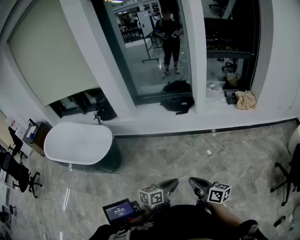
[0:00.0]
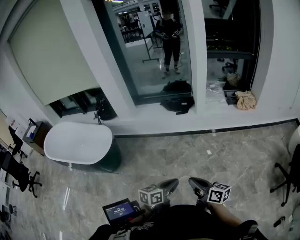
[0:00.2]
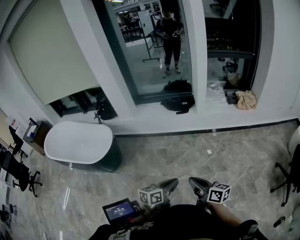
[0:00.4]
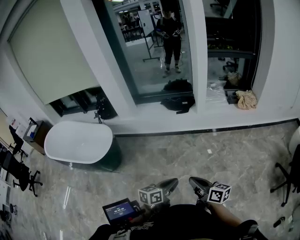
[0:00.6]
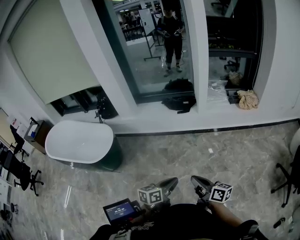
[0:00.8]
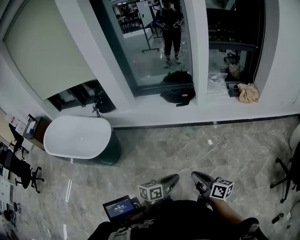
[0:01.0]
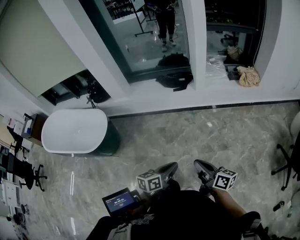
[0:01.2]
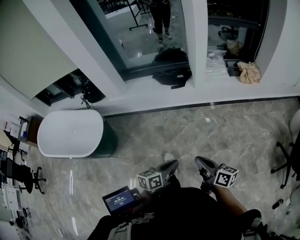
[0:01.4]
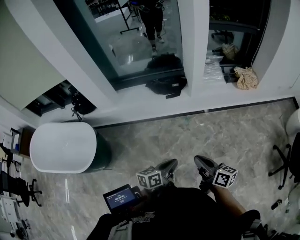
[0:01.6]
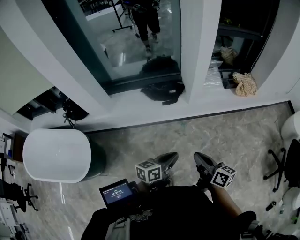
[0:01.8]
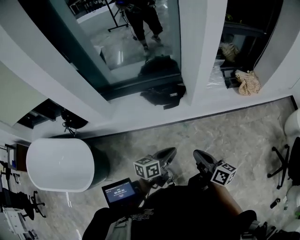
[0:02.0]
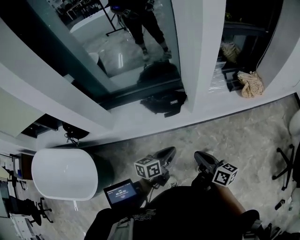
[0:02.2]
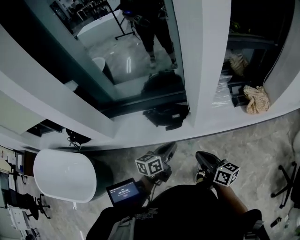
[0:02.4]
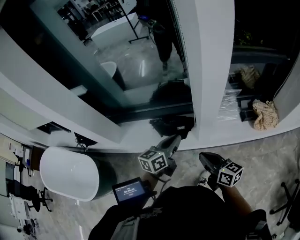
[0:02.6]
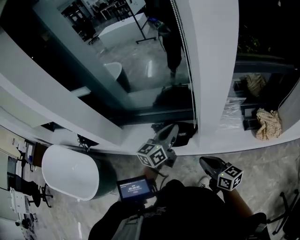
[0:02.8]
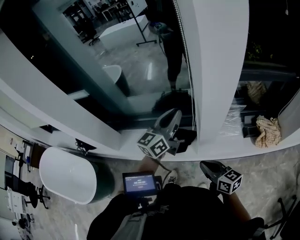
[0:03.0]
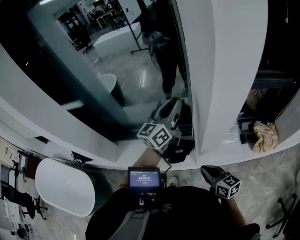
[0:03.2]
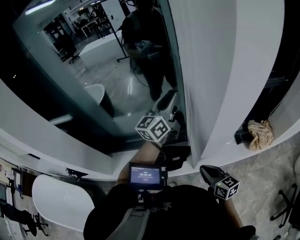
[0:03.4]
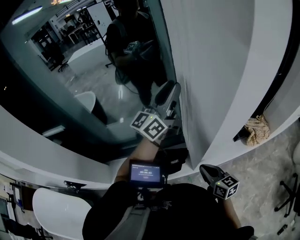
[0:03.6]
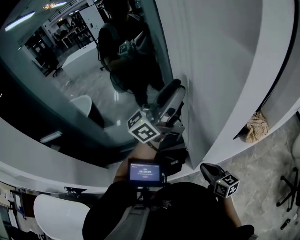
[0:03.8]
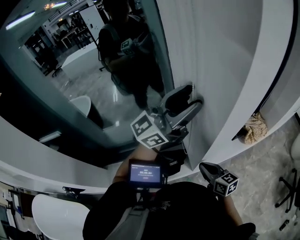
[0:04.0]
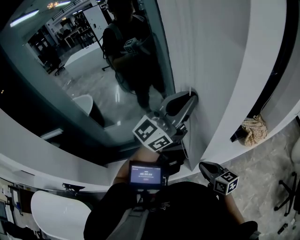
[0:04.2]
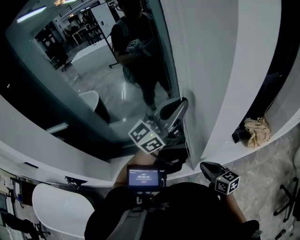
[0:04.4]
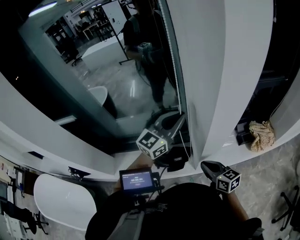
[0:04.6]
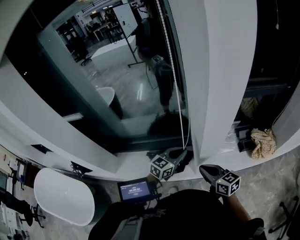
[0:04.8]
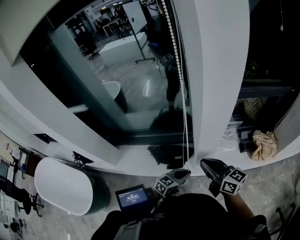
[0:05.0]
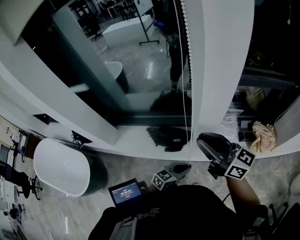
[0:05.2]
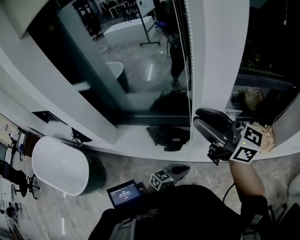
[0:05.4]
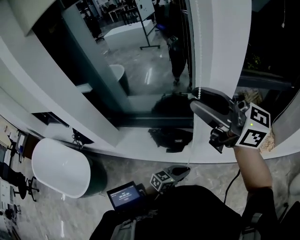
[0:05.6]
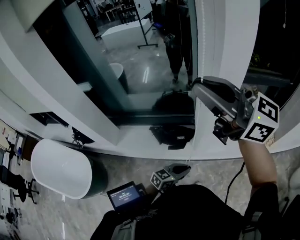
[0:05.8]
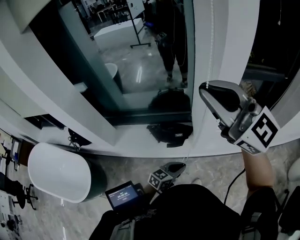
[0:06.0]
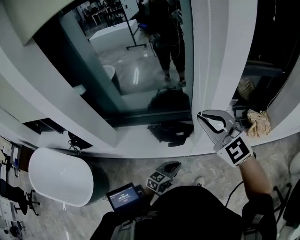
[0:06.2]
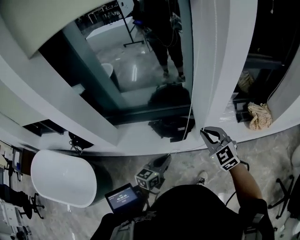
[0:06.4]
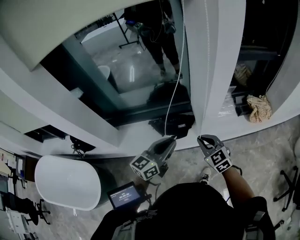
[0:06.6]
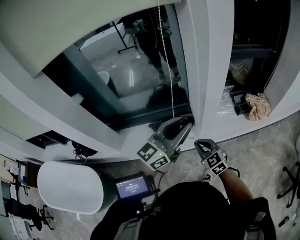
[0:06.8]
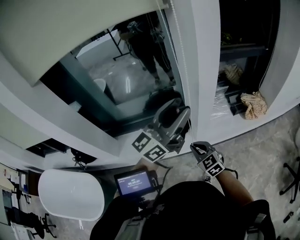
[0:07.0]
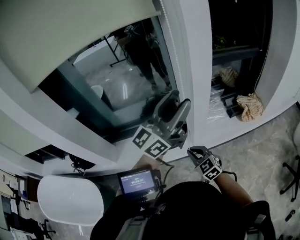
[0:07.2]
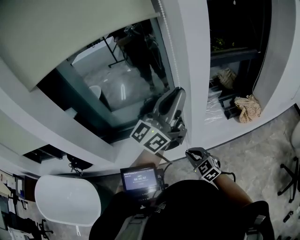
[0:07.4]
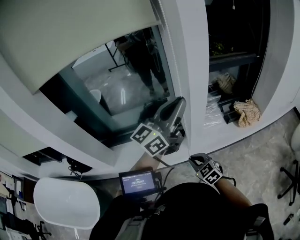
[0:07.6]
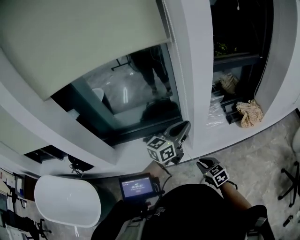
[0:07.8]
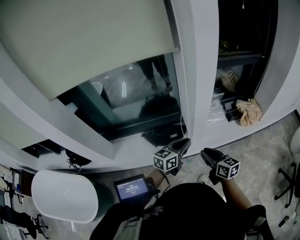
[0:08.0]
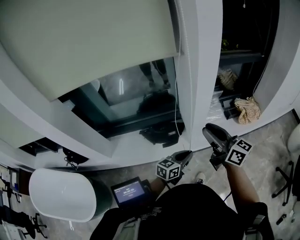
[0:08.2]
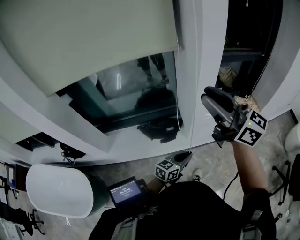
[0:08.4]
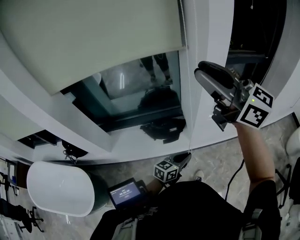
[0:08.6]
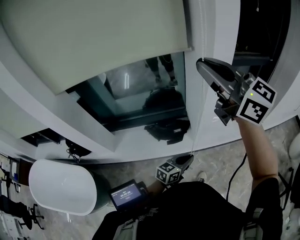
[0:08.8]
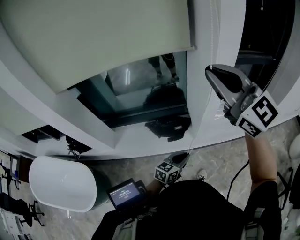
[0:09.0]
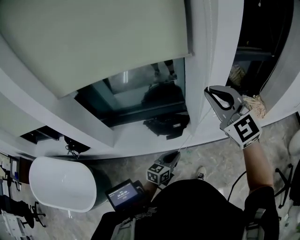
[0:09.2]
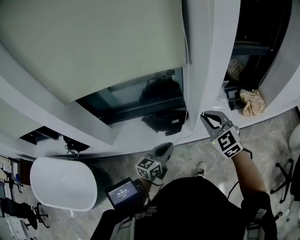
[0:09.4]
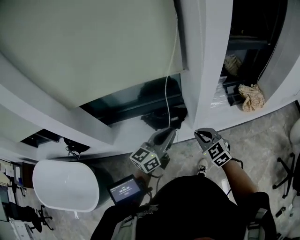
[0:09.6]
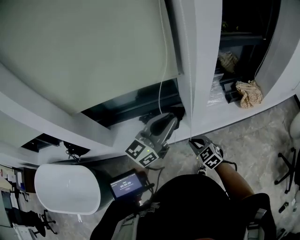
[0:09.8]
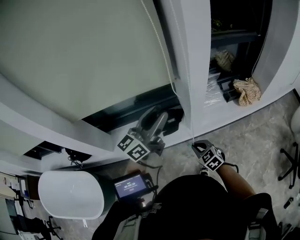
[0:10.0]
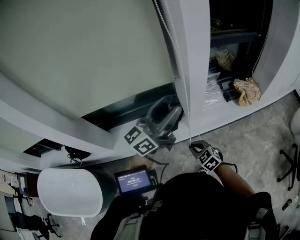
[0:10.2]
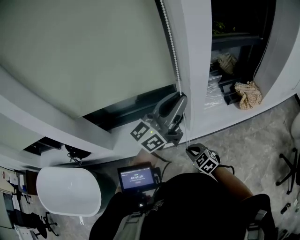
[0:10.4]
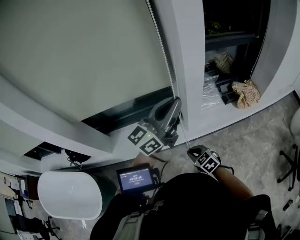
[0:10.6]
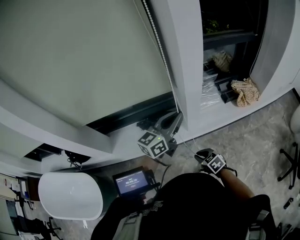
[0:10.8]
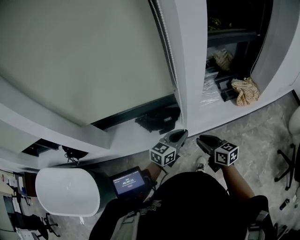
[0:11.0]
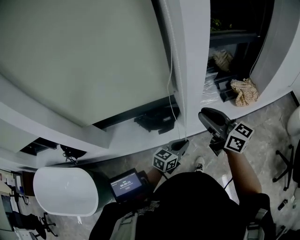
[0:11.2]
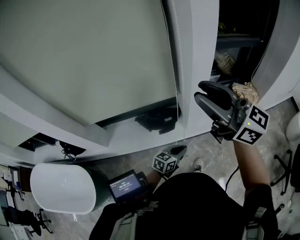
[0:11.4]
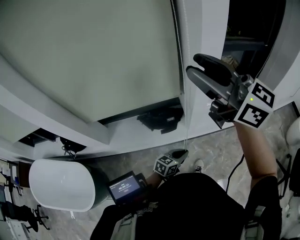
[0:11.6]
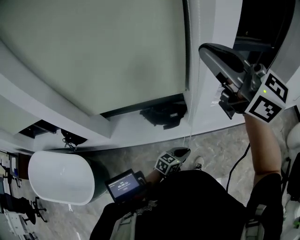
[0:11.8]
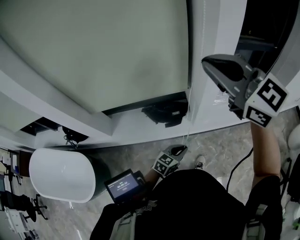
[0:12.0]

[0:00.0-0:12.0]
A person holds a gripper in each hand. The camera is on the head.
0:00.0 to 0:01.6: Both grippers travel together forward, about 20 cm.
0:01.6 to 0:03.0: Both grippers are carried forward, some 50 cm. The right gripper swivels roughly 20 degrees. The left gripper turns by some 40 degrees.
0:03.0 to 0:04.4: The right gripper changes place by some 10 cm, while the left gripper travels upward by approximately 15 cm, rotates roughly 40 degrees, and opens, then closes once more.
0:04.4 to 0:06.0: The right gripper shifts approximately 40 cm upward, rotates roughly 60 degrees, and opens, then closes once more, while the left gripper goes roughly 50 cm downward and backward, and points its fingers approximately 50 degrees further downward.
0:06.0 to 0:07.6: The right gripper goes roughly 40 cm downward, and tilts its fingers about 50 degrees downward, while the left gripper moves upward, about 40 cm, tips its fingers upward by about 40 degrees, and opens, then closes again.
0:07.6 to 0:09.0: The right gripper moves upward, approximately 40 cm, tilts its fingers some 40 degrees upward, and opens and closes again. The left gripper is displaced downward by roughly 35 cm, and angles its fingers downward, by roughly 40 degrees.
0:09.0 to 0:10.4: The left gripper goes roughly 30 cm upward, angles its fingers upward, by roughly 40 degrees, and opens, then closes again; the right gripper travels downward by approximately 50 cm, and angles its fingers downward, by approximately 50 degrees.
0:10.4 to 0:12.0: The left gripper moves downward, about 40 cm, and points its fingers approximately 50 degrees further downward. The right gripper swings up and down, some 60 cm each way, with 2 reversals, points its fingers roughly 40 degrees further upward, and opens and closes again.

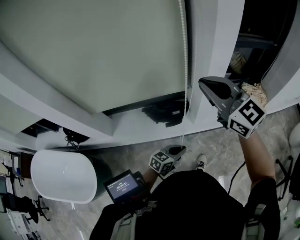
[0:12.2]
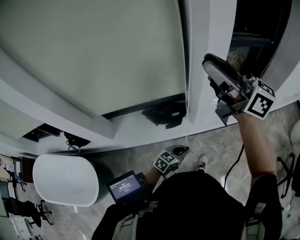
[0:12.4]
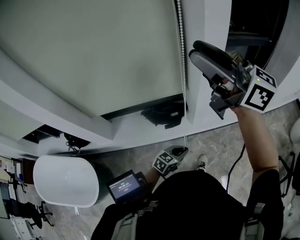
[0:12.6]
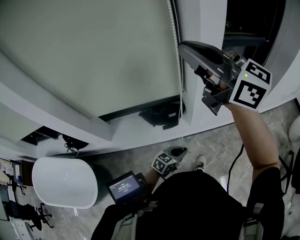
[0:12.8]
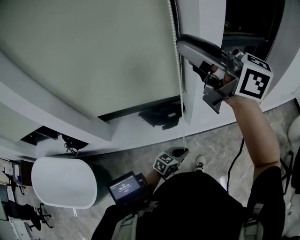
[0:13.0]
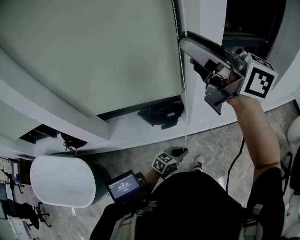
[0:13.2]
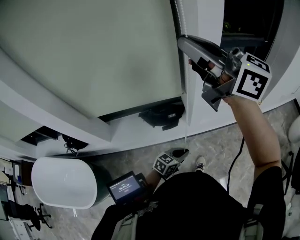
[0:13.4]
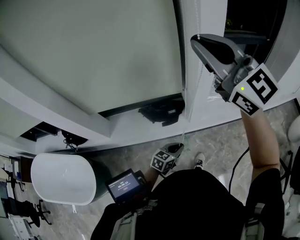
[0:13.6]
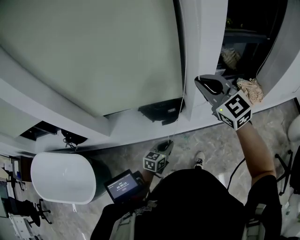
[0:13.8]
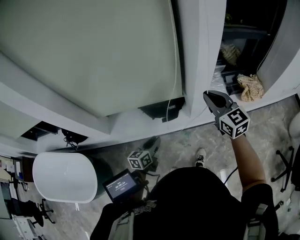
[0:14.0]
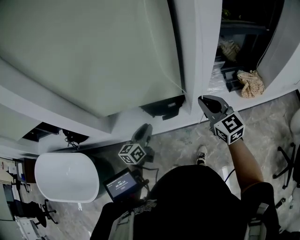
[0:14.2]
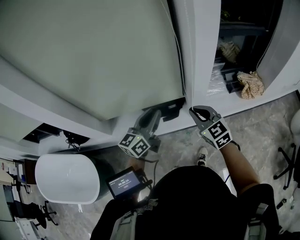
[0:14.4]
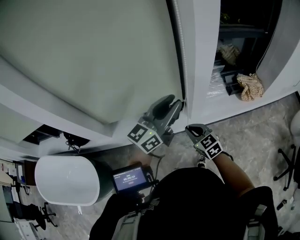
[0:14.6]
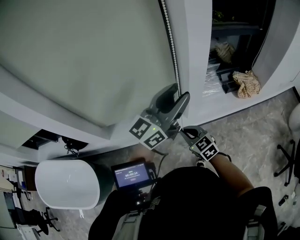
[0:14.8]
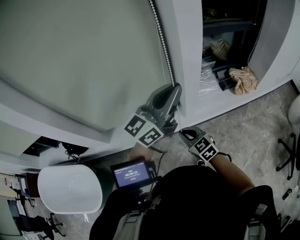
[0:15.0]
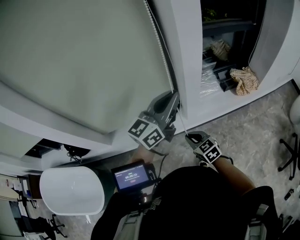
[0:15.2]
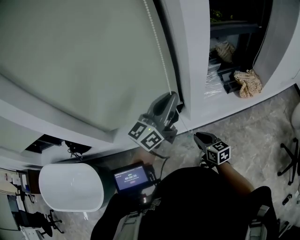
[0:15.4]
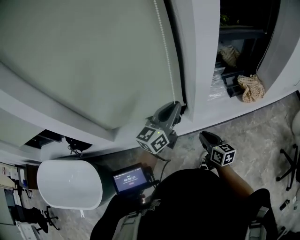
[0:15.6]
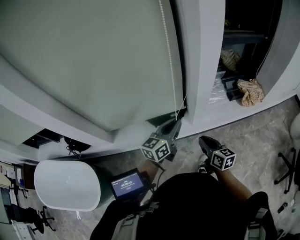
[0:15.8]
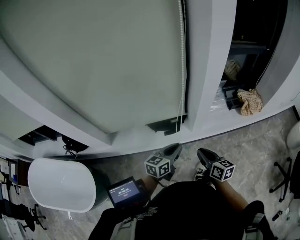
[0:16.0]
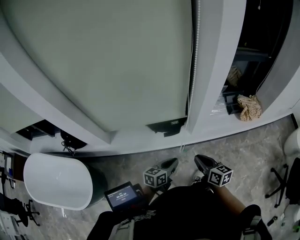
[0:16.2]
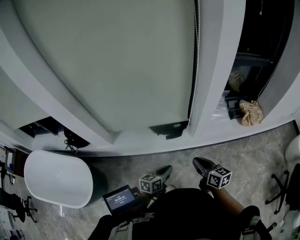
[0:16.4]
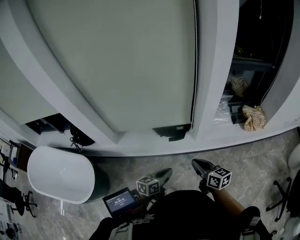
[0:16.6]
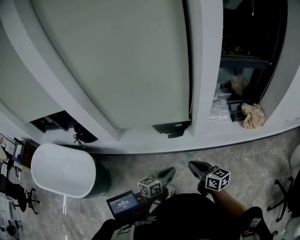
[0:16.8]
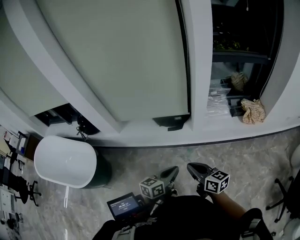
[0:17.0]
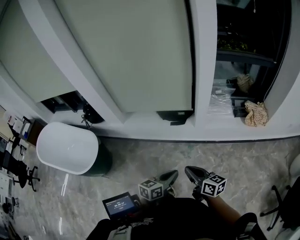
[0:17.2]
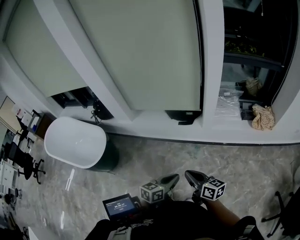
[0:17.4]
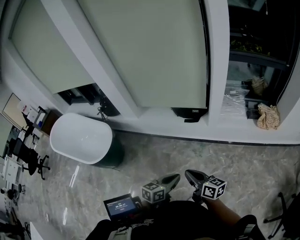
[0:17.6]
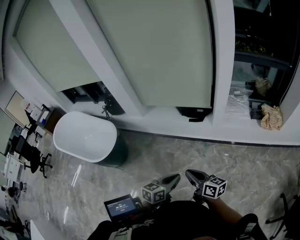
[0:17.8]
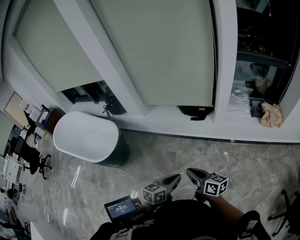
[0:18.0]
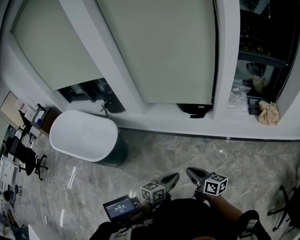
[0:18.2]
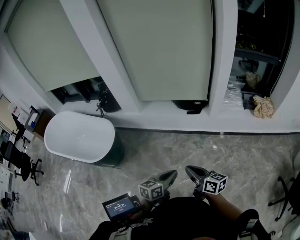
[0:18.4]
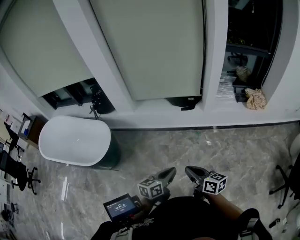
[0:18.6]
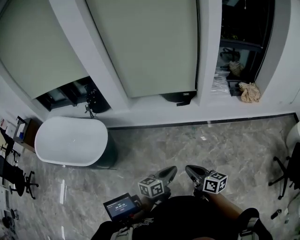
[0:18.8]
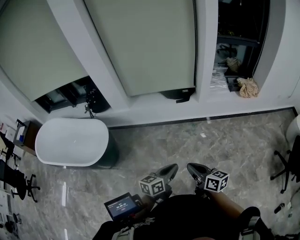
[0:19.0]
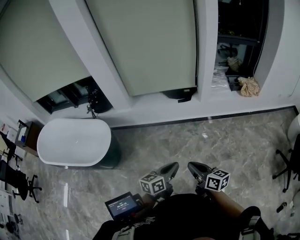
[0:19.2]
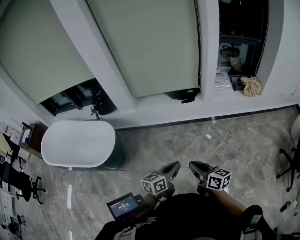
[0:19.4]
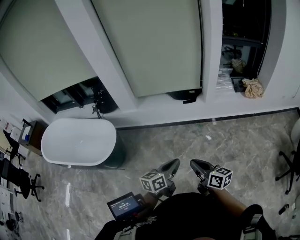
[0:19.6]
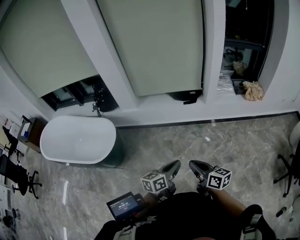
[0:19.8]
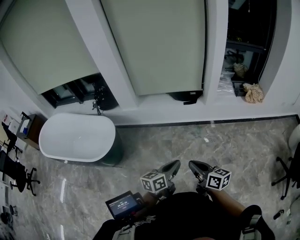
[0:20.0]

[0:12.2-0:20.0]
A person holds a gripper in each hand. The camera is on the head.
0:12.2 to 0:13.8: The right gripper reaches roughly 15 cm upward, then returns, and opens, then closes again. The left gripper moves some 5 cm.
0:13.8 to 0:15.4: The left gripper heads upward, covering some 35 cm, angles its fingers upward, by roughly 40 degrees, and opens and closes again, while the right gripper moves downward, approximately 30 cm, and rolls clockwise, seen from behind, by about 40 degrees.
0:15.4 to 0:16.8: The right gripper moves backward and upward, roughly 15 cm, and rotates approximately 20 degrees. The left gripper shifts some 35 cm downward and backward, and points its fingers about 30 degrees further downward.
0:16.8 to 0:18.4: Both grippers move backward and to the left, approximately 30 cm.
0:18.4 to 0:20.0: The right gripper goes roughly 10 cm backward and to the left, while the left gripper travels to the left and backward by some 10 cm.

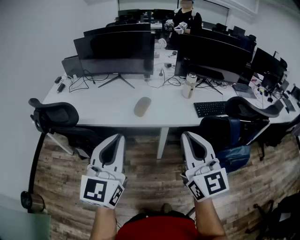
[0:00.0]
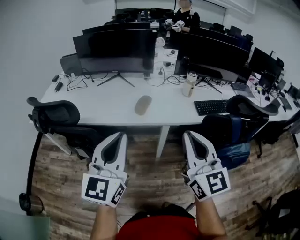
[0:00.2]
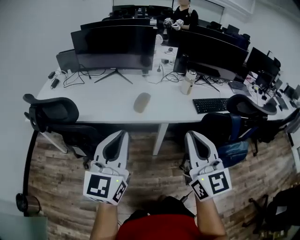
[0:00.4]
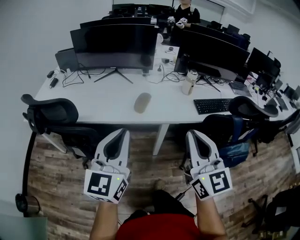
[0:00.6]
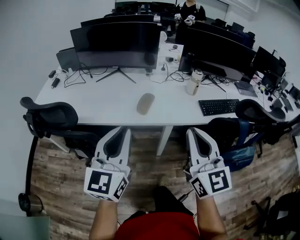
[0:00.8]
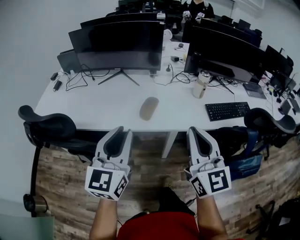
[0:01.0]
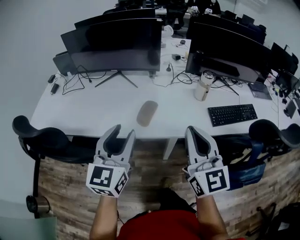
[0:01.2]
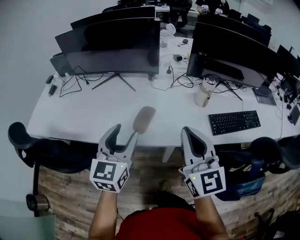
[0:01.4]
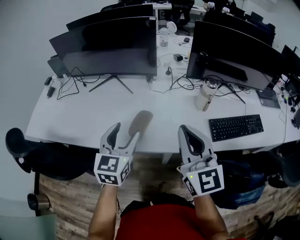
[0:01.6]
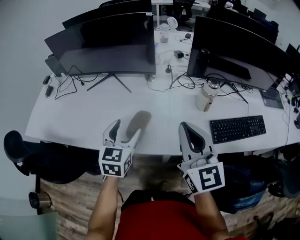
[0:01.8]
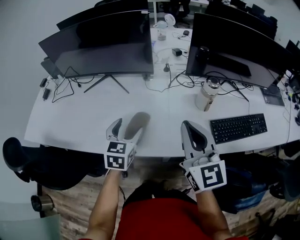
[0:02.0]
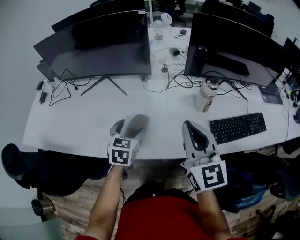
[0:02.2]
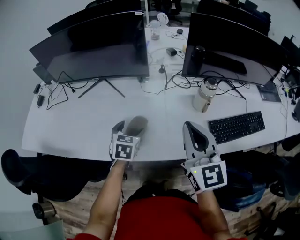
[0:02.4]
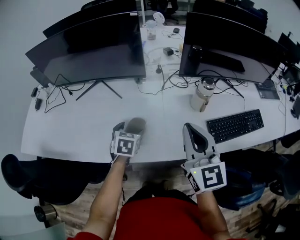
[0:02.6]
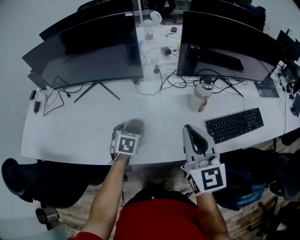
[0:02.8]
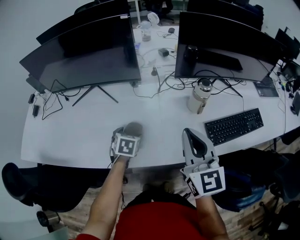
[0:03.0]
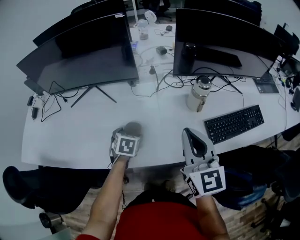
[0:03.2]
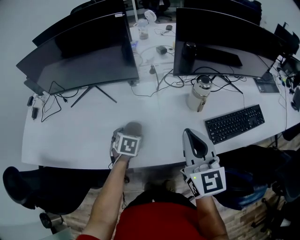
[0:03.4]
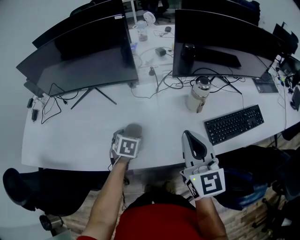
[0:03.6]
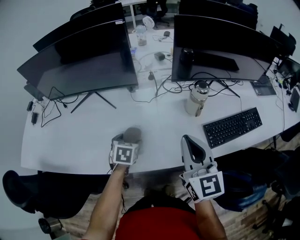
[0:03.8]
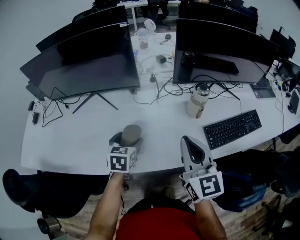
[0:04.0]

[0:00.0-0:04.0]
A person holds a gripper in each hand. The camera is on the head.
0:00.0 to 0:01.4: The left gripper travels forward and downward by roughly 30 cm, and opens up. The right gripper travels forward by about 25 cm.
0:01.4 to 0:02.6: The right gripper is displaced forward and to the right by approximately 15 cm; the left gripper heads downward and forward, covering about 30 cm, points its fingers approximately 40 degrees further downward, and opens up.
0:02.6 to 0:04.0: The grippers stay close to where they were, moving slightly.
